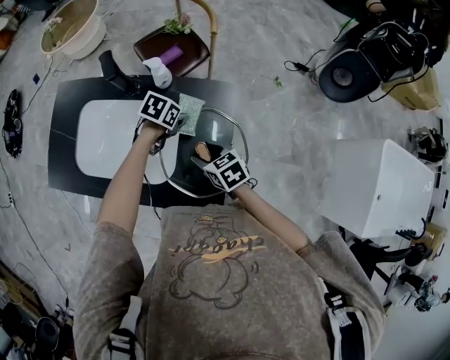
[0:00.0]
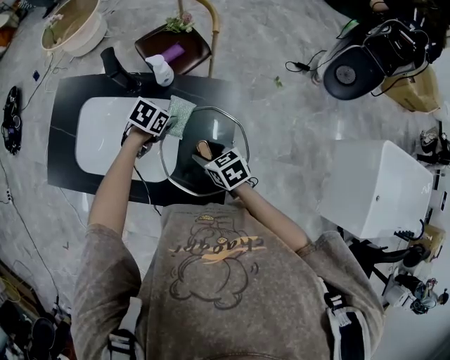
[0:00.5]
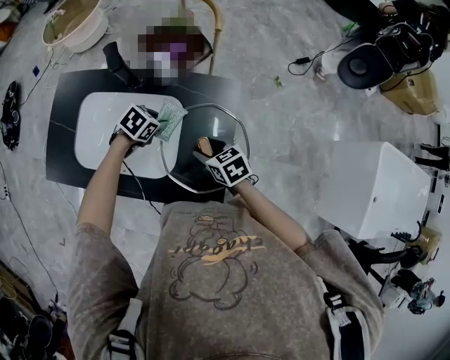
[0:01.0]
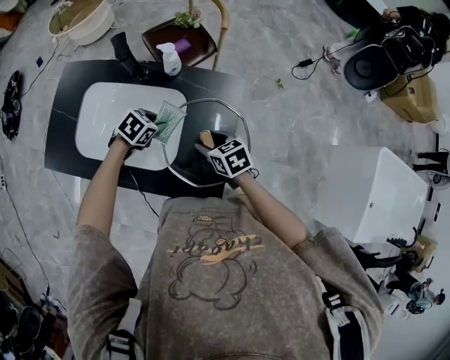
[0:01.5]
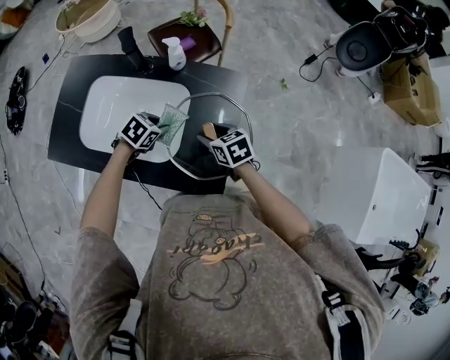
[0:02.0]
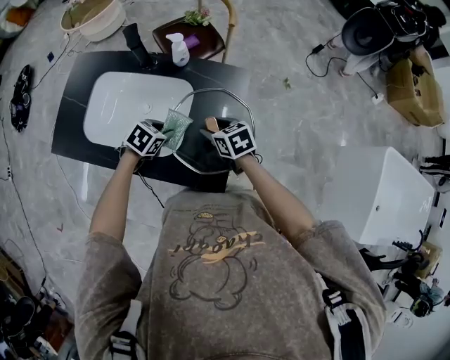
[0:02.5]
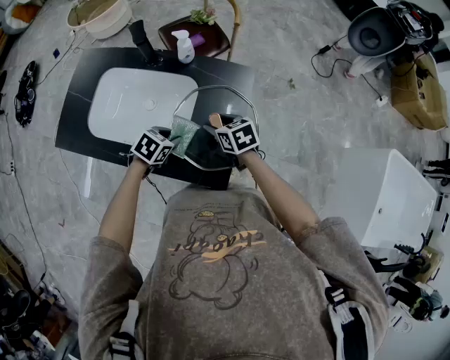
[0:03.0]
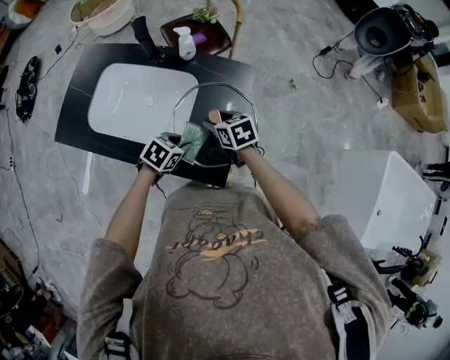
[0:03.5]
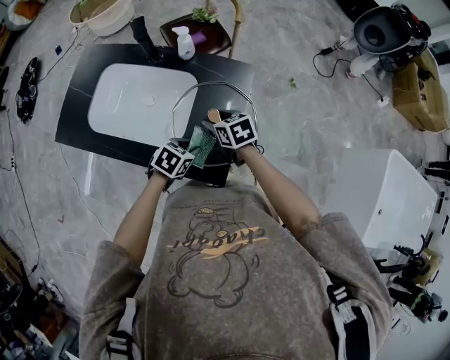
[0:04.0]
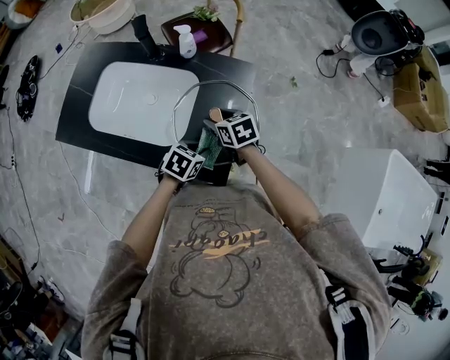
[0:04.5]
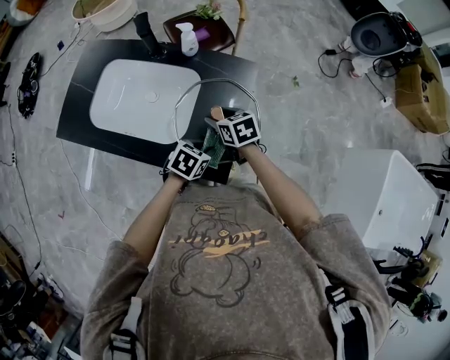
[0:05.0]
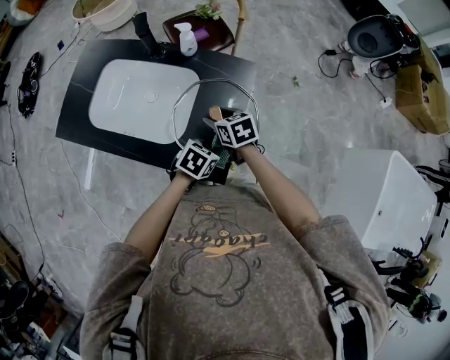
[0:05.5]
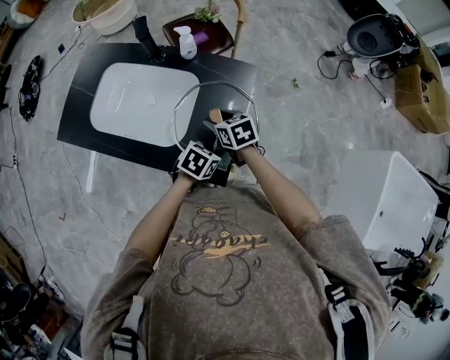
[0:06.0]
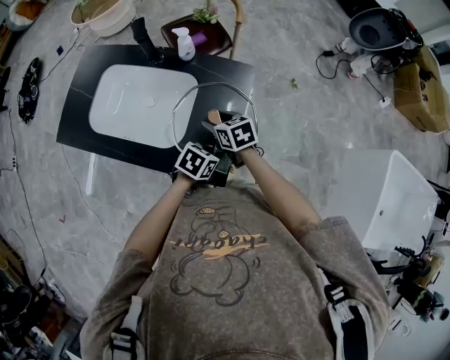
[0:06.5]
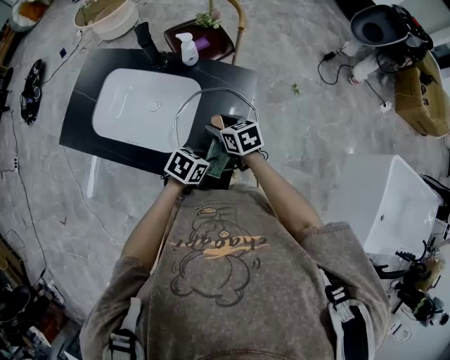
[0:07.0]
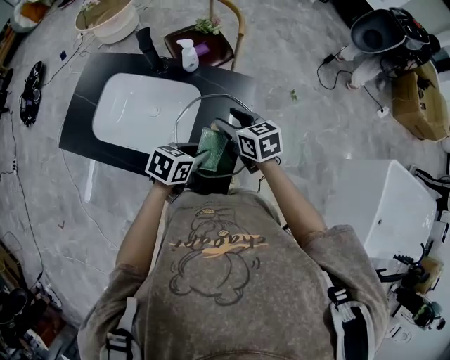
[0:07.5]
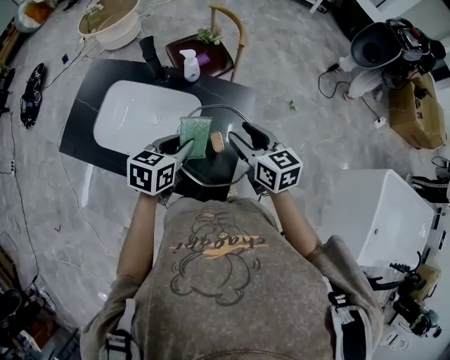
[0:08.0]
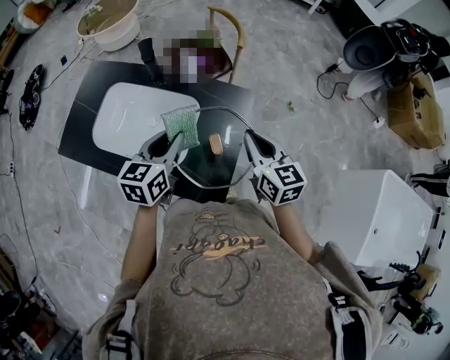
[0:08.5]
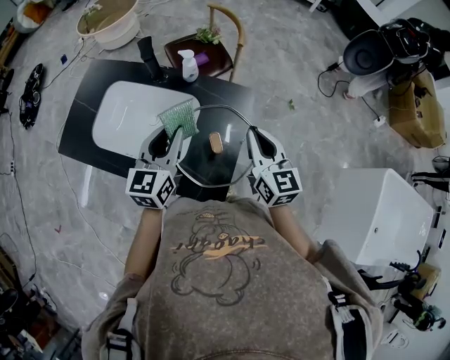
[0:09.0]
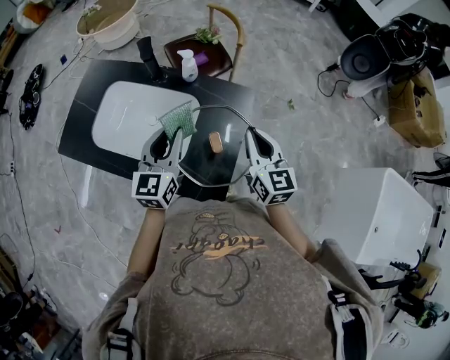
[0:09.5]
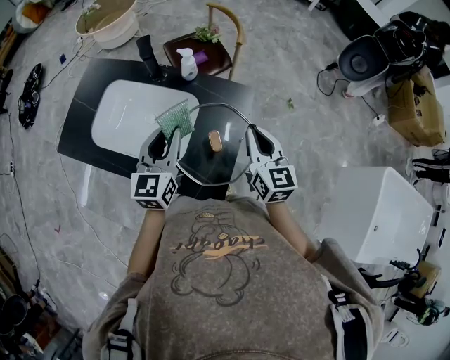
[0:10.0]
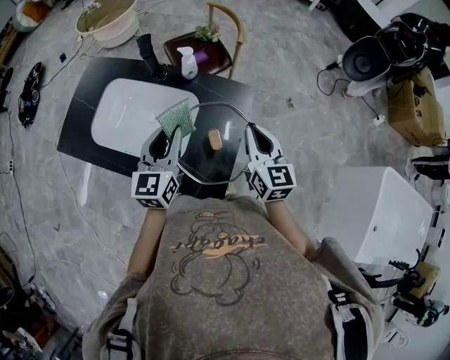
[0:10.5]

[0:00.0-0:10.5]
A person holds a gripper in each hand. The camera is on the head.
0:00.0 to 0:02.0: The left gripper changes place by about 15 cm.
0:02.0 to 0:04.0: The left gripper goes approximately 15 cm backward and to the right.
0:04.0 to 0:06.5: The left gripper moves to the right, roughly 10 cm.
0:06.5 to 0:08.5: The left gripper shifts roughly 25 cm upward, to the left and forward, and swivels roughly 50 degrees, while the right gripper goes about 20 cm upward and to the right, rotates some 30 degrees, and closes.

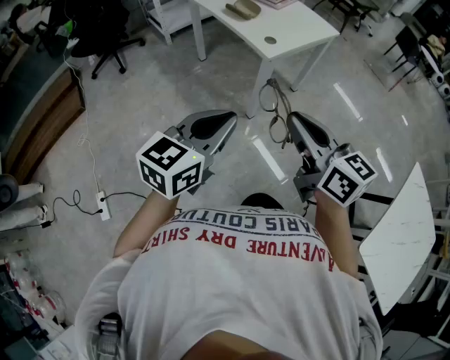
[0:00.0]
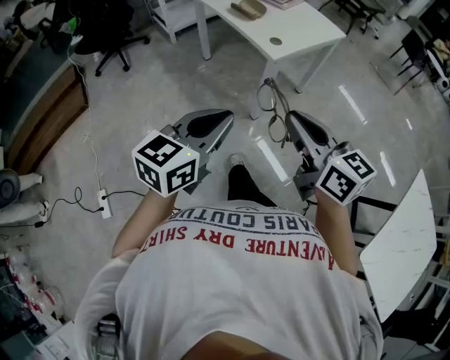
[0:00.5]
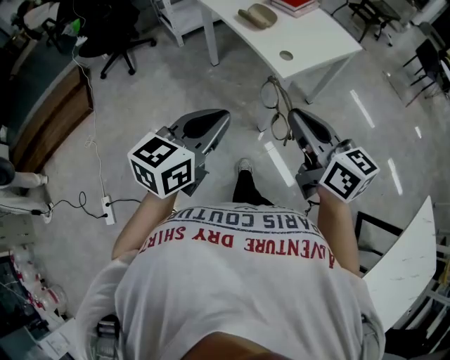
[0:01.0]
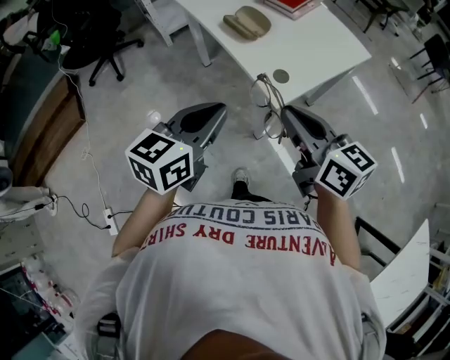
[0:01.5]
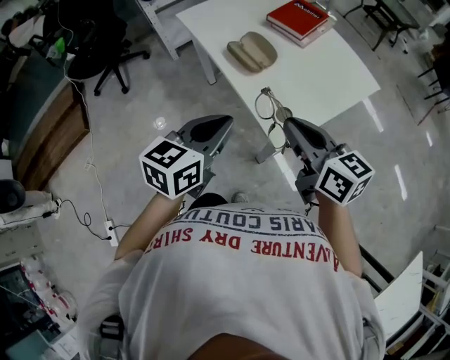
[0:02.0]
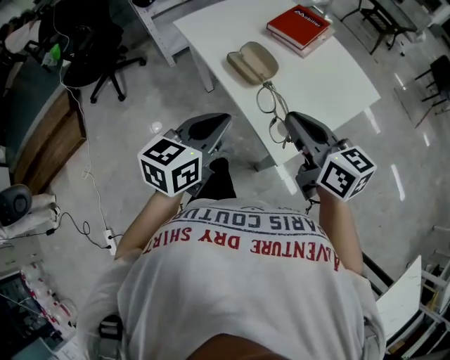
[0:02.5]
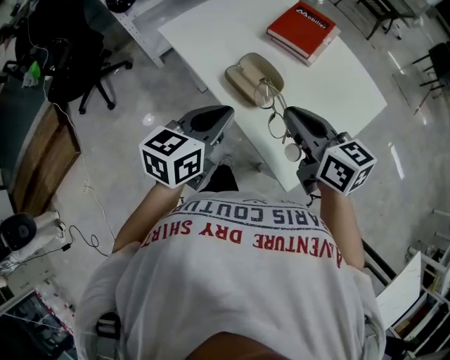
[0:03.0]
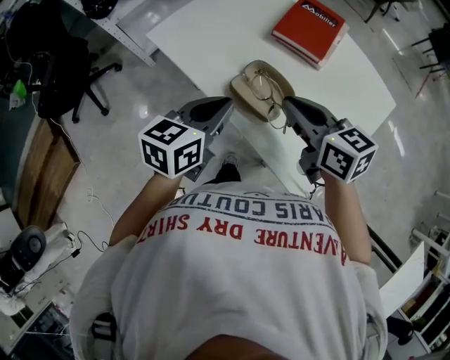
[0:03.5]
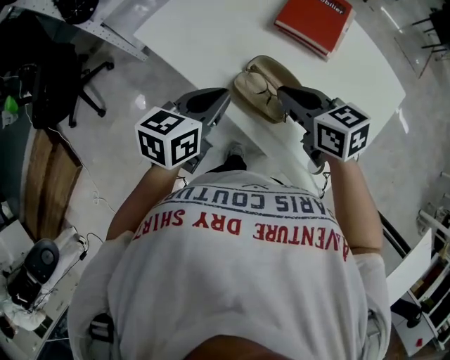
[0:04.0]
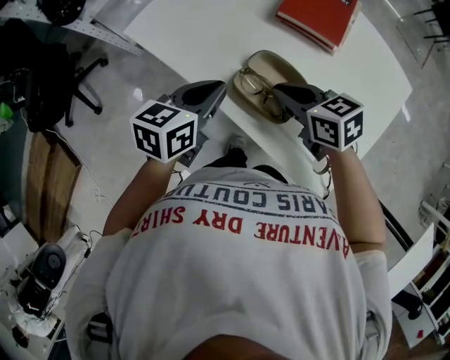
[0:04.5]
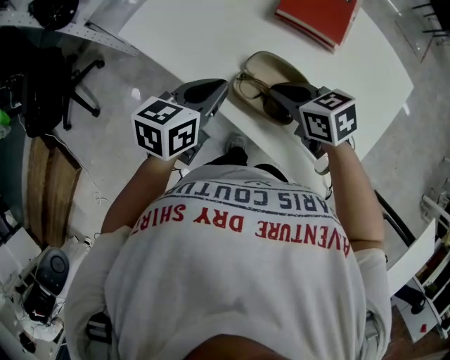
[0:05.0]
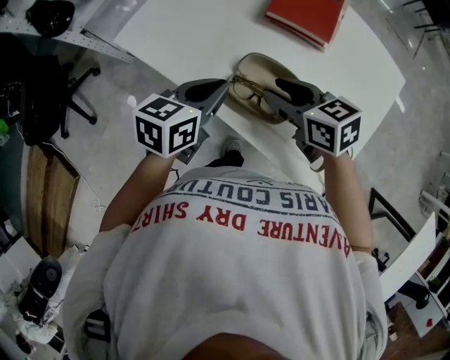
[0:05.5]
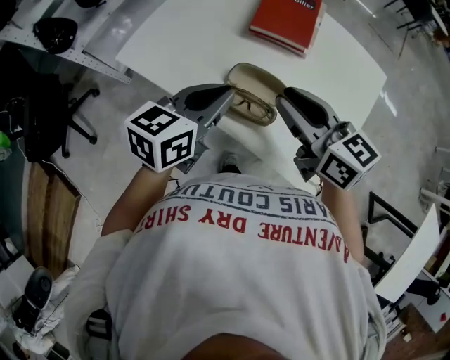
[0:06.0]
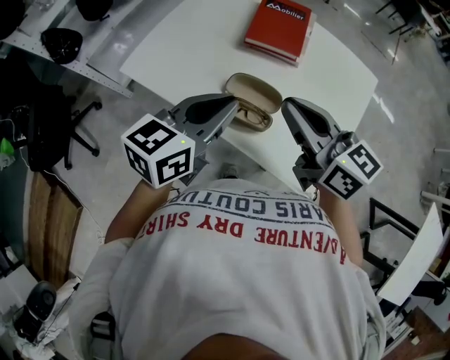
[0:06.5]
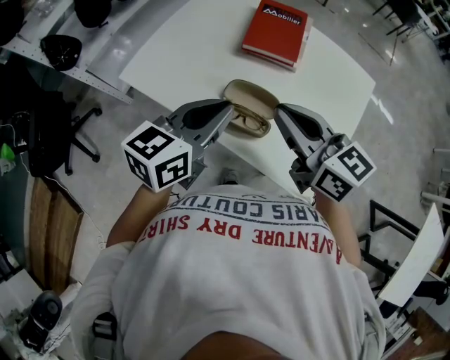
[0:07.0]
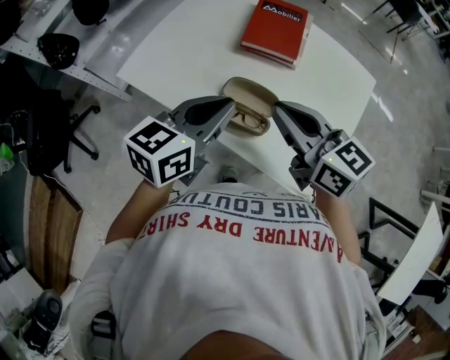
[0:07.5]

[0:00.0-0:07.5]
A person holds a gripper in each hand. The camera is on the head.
0:00.0 to 0:02.0: The two grippers travel together, forward, approximately 40 cm.
0:02.0 to 0:04.0: The left gripper moves forward, about 30 cm. The right gripper travels forward and downward by some 30 cm, and turns by approximately 20 degrees.
0:04.0 to 0:05.5: The right gripper opens up.
0:05.5 to 0:07.5: Both grippers move upward, approximately 15 cm. The right gripper swivels about 30 degrees, and closes up.

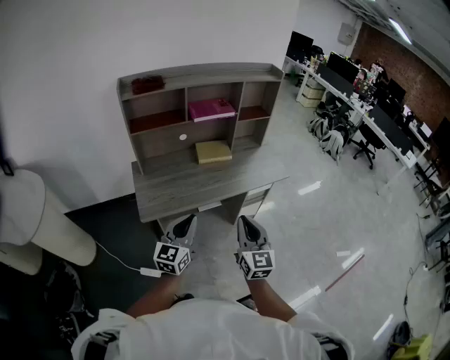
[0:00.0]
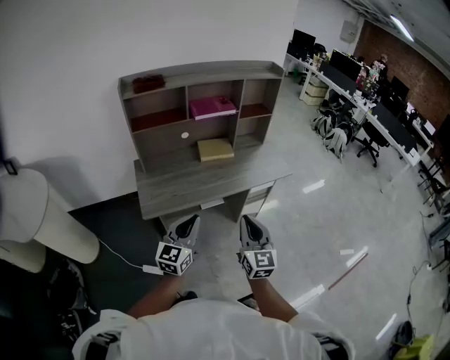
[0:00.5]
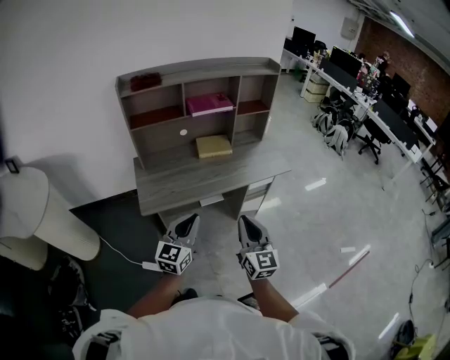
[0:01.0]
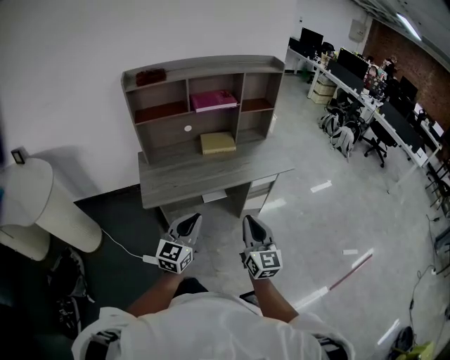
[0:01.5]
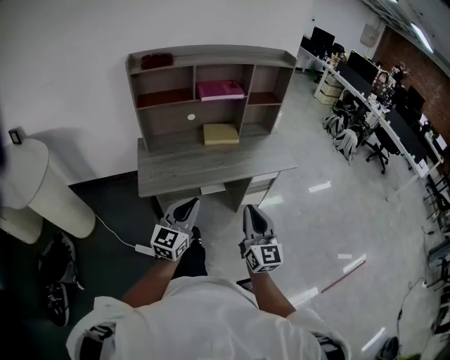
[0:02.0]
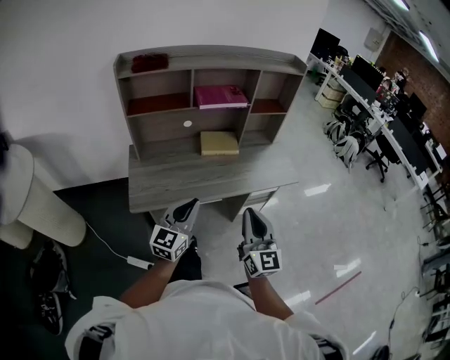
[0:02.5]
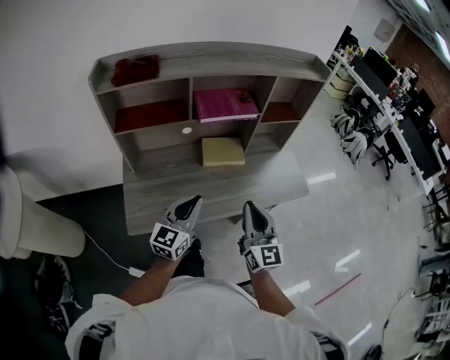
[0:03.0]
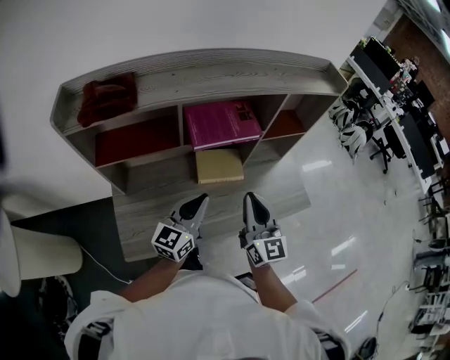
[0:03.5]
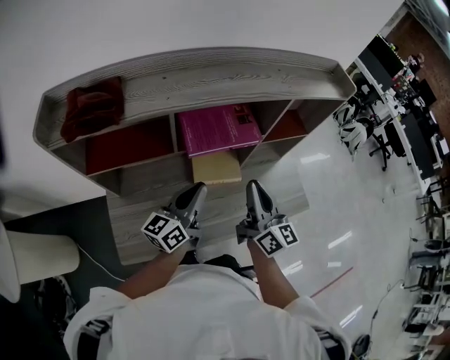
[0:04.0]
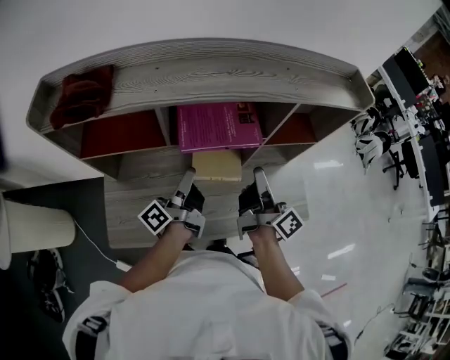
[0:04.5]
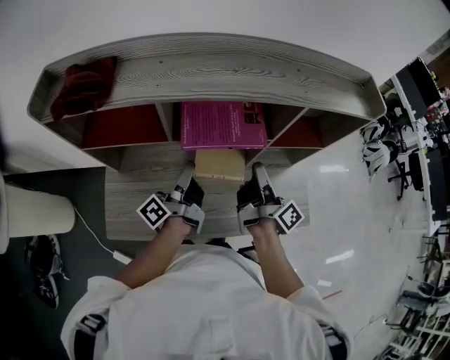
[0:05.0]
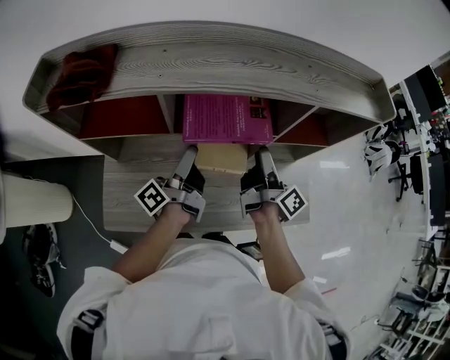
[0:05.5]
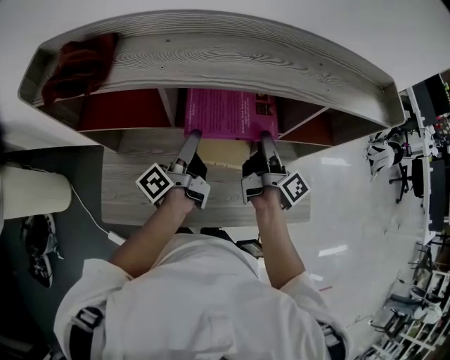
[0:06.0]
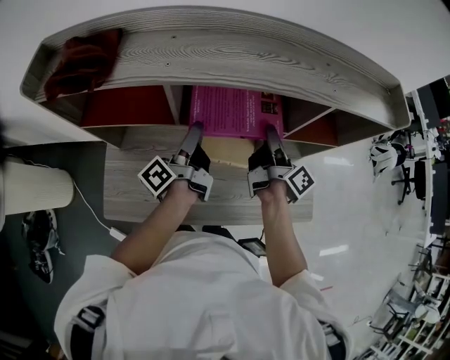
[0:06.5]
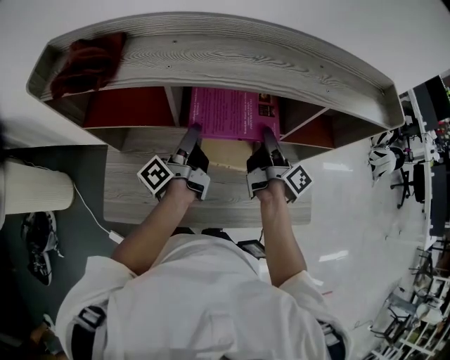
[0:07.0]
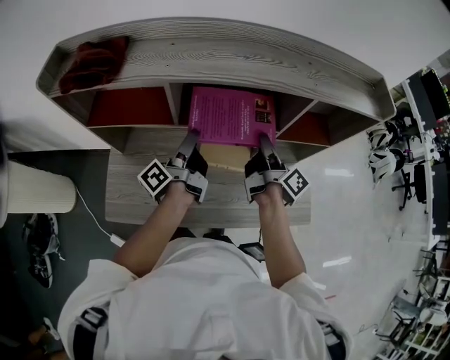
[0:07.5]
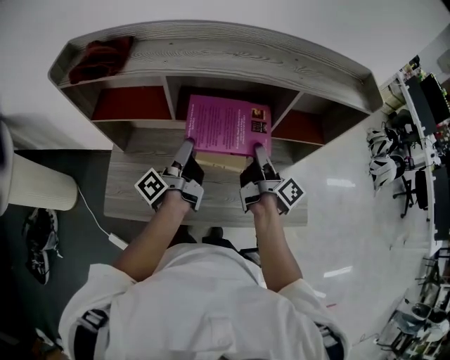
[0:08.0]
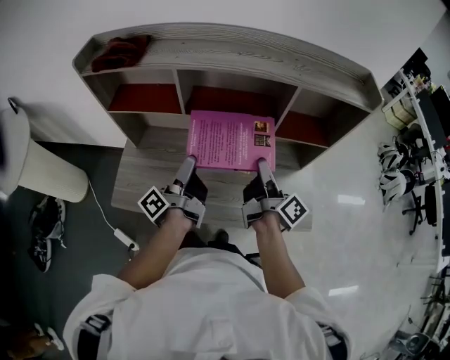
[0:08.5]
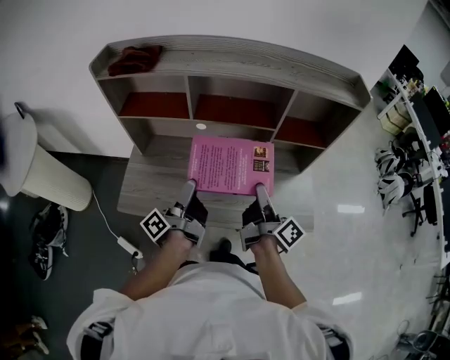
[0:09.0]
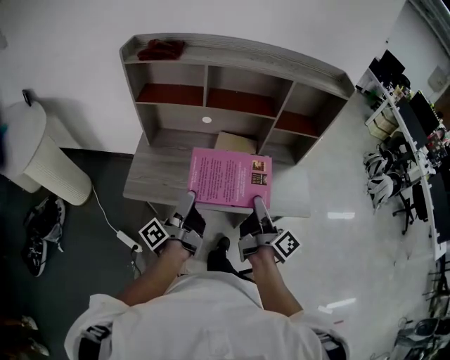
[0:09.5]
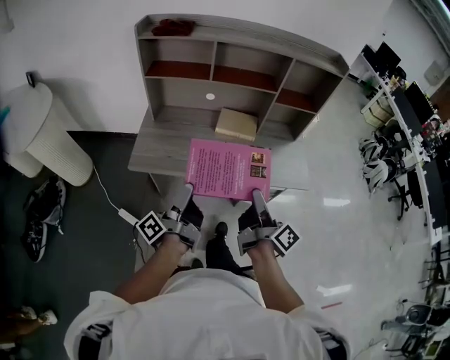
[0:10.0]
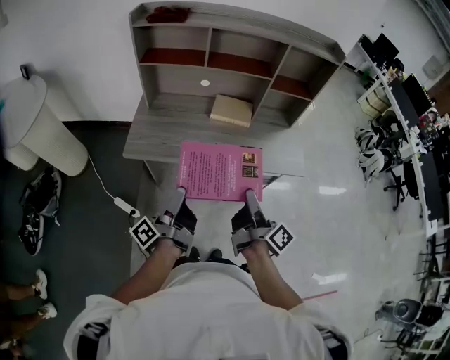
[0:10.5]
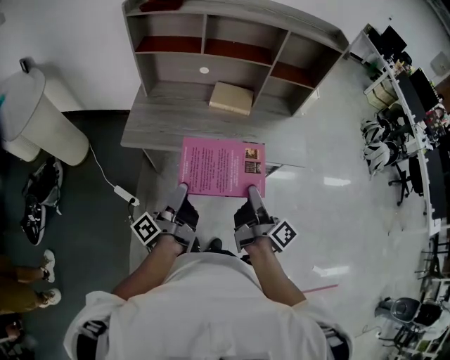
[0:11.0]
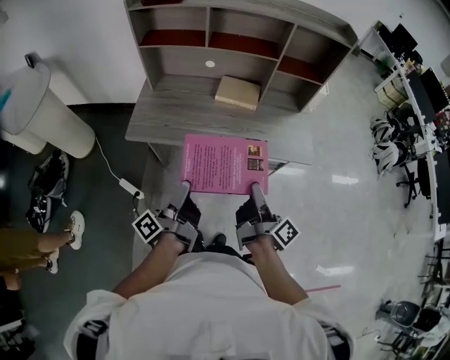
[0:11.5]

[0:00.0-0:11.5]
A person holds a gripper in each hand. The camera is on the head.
0:00.0 to 0:02.0: The right gripper shifts roughly 5 cm to the right.
0:02.0 to 0:04.0: Both grippers are carried forward, about 50 cm. The left gripper turns by some 40 degrees. Meanwhile the right gripper changes its angle by about 20 degrees.
0:04.0 to 0:06.0: The left gripper goes approximately 10 cm forward, rolls counterclockwise, seen from behind, by some 40 degrees, and opens its fingers, while the right gripper heads forward and downward, covering roughly 20 cm, rotates around the line of its fingers by about 50 degrees, clockwise from behind, and opens its fingers.
0:06.0 to 0:07.5: The left gripper closes its fingers.
0:07.5 to 0:09.5: Both grippers travel together backward, about 35 cm.
0:09.5 to 0:11.5: The two grippers go some 15 cm backward.
